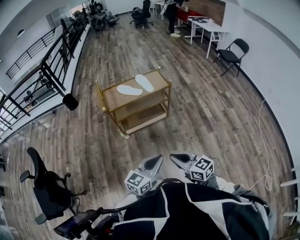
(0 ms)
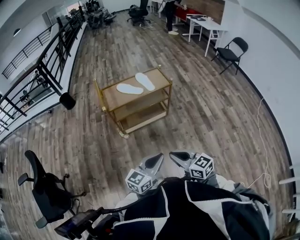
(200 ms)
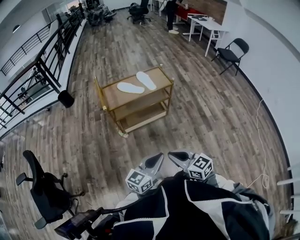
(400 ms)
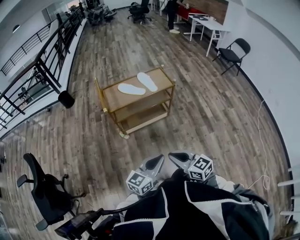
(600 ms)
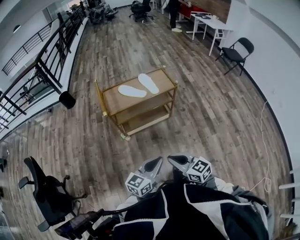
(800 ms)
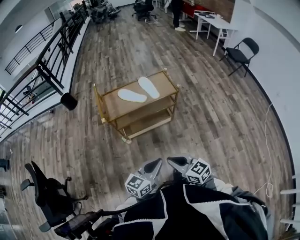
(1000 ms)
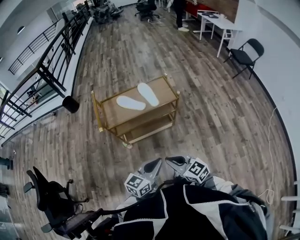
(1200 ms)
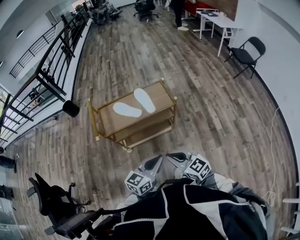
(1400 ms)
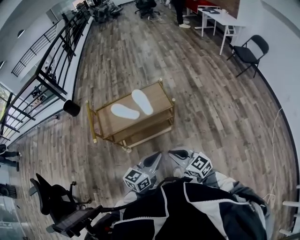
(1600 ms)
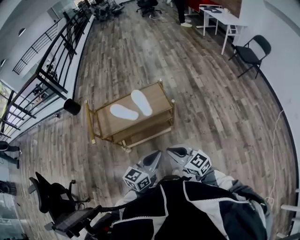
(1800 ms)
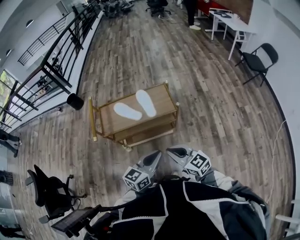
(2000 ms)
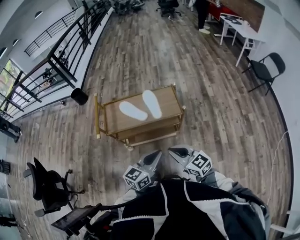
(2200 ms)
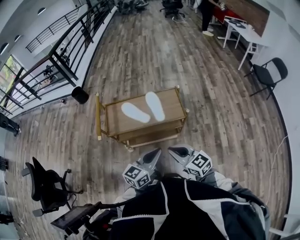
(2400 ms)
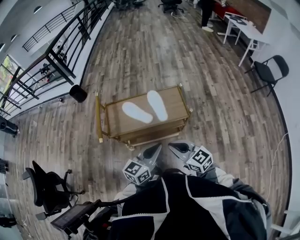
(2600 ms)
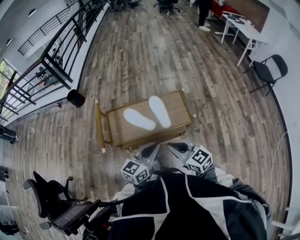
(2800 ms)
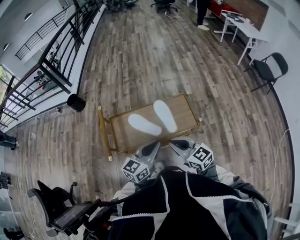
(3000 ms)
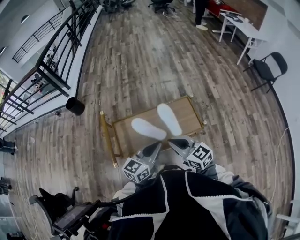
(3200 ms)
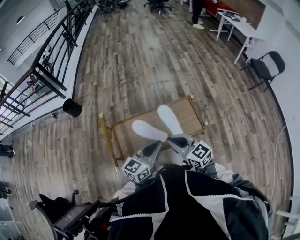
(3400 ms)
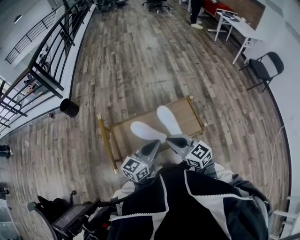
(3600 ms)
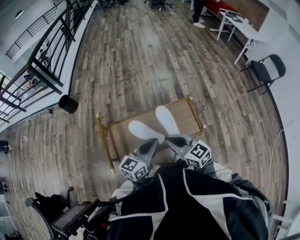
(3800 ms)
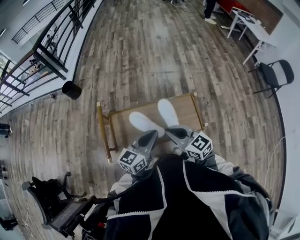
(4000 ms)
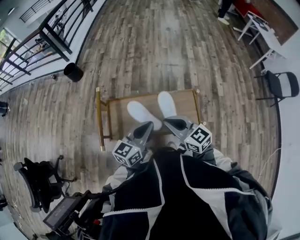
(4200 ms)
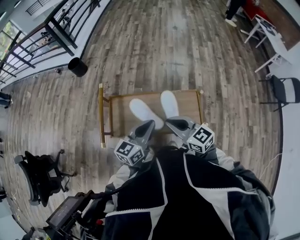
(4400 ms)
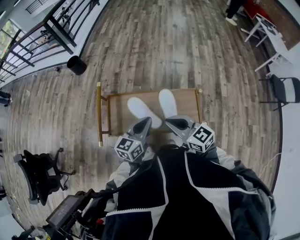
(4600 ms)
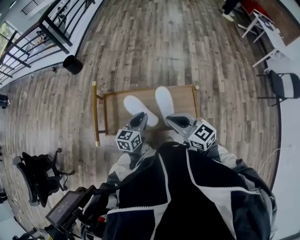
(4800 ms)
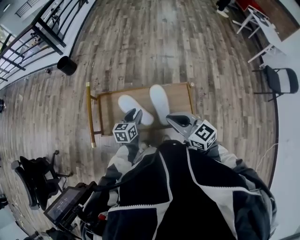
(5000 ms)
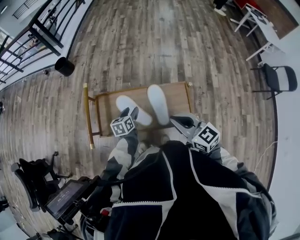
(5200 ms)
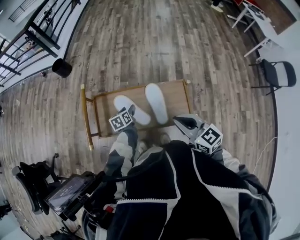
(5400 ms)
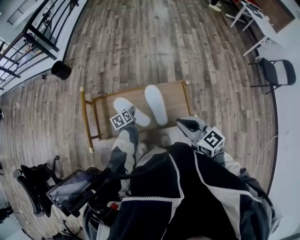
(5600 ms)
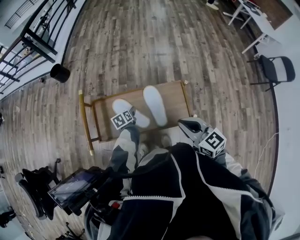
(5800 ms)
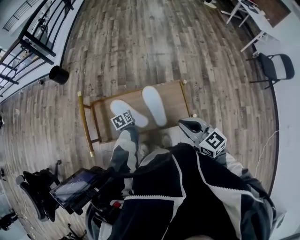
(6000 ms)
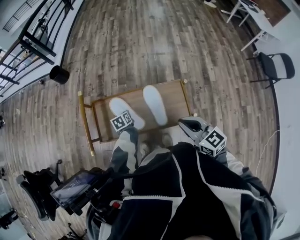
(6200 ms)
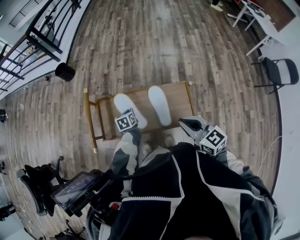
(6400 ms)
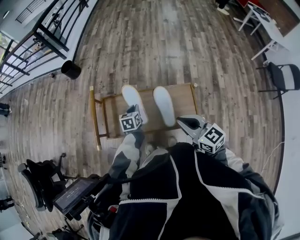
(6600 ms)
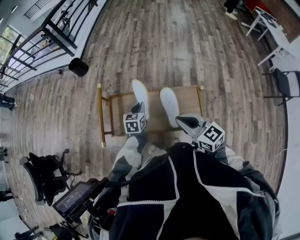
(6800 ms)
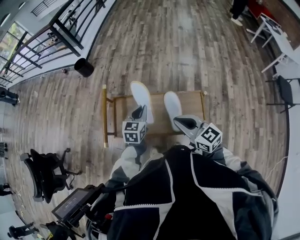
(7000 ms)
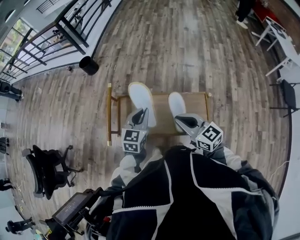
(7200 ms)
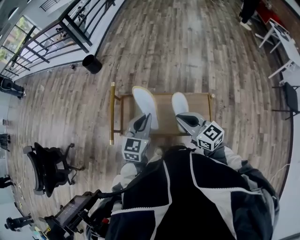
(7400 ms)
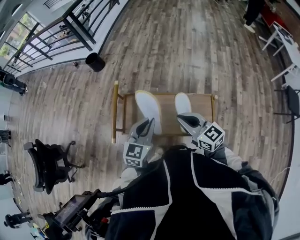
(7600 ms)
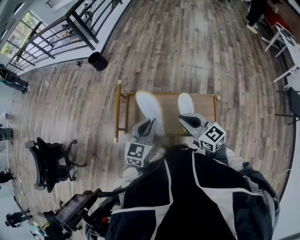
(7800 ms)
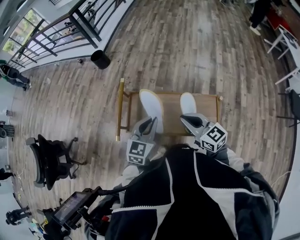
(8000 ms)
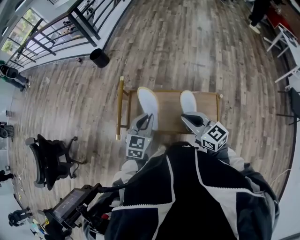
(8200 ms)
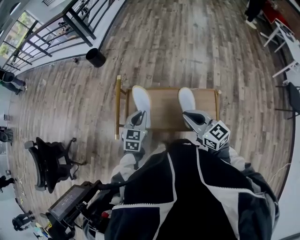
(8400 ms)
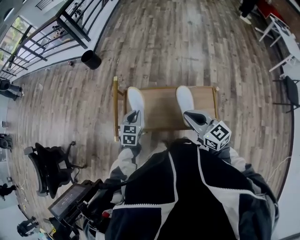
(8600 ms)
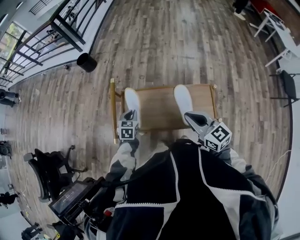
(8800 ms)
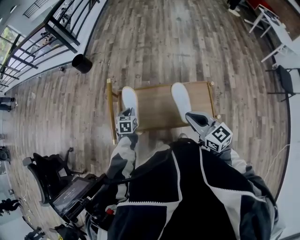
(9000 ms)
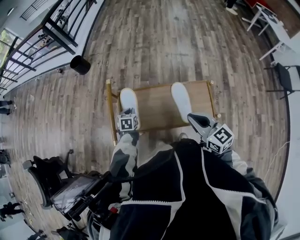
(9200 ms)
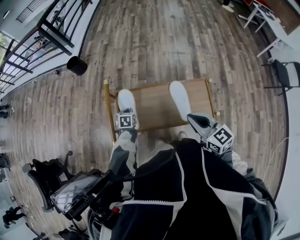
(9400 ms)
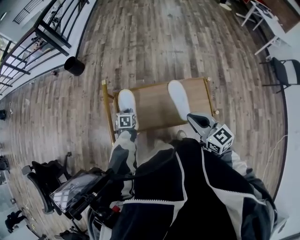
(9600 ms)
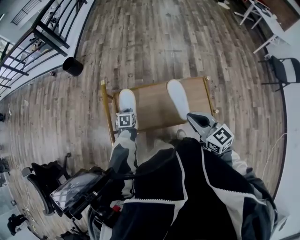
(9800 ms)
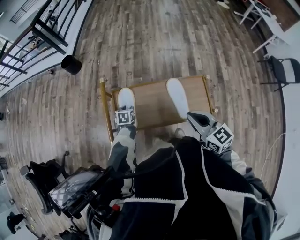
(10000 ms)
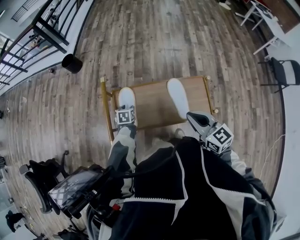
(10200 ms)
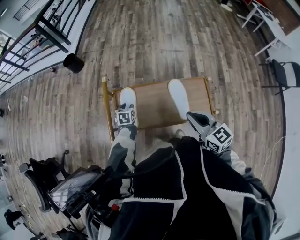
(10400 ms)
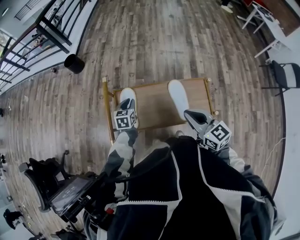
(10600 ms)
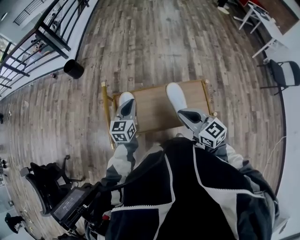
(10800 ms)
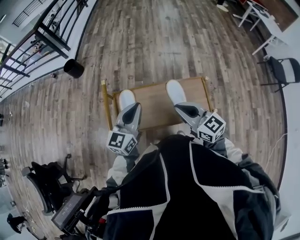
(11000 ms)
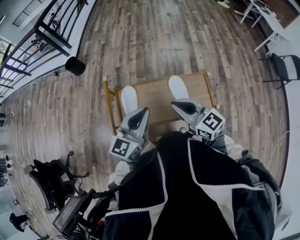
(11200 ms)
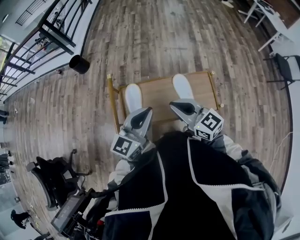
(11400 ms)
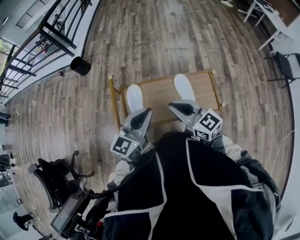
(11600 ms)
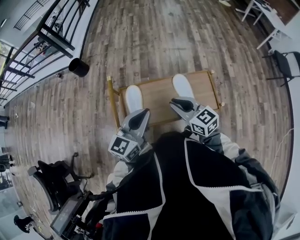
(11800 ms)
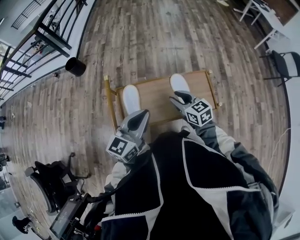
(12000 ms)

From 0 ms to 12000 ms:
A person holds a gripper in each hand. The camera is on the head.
From 0 ms to 1600 ms: Both grippers travel together forward, some 30 cm.
From 1600 ms to 3000 ms: Both grippers move forward and to the left, approximately 25 cm.
From 3000 ms to 4400 ms: The two grippers go roughly 10 cm forward.
From 4400 ms to 6000 ms: The right gripper moves to the right, some 10 cm. The left gripper moves downward and forward, roughly 30 cm, angles its fingers downward, by about 50 degrees, and opens, then closes again.
From 6000 ms to 7600 ms: The right gripper is displaced to the left and forward by roughly 15 cm; the left gripper is displaced upward by about 30 cm, and points its fingers some 40 degrees further upward.
From 7600 ms to 9000 ms: The left gripper heads downward, forward and to the left, covering approximately 30 cm, and tips its fingers downward by about 30 degrees.
From 9000 ms to 10400 ms: The left gripper goes some 5 cm downward, and opens its fingers.
From 10400 ms to 12000 ms: The right gripper travels downward and forward by approximately 10 cm, and opens; the left gripper moves upward and backward, approximately 35 cm, tips its fingers upward by about 50 degrees, and closes.

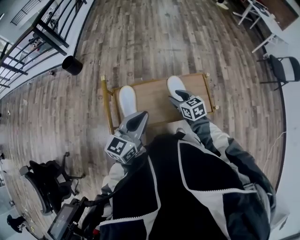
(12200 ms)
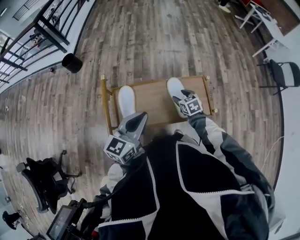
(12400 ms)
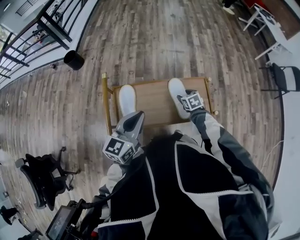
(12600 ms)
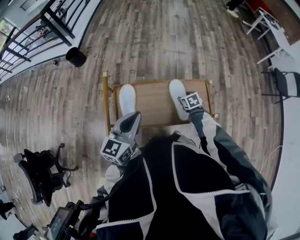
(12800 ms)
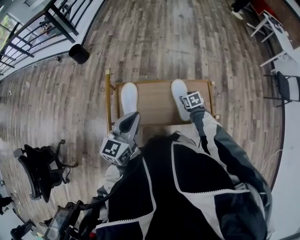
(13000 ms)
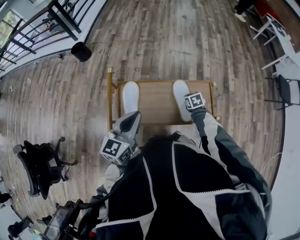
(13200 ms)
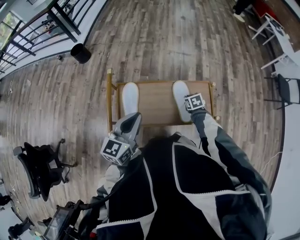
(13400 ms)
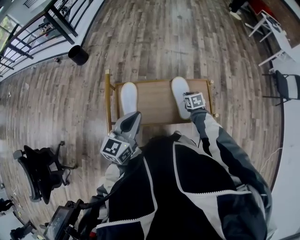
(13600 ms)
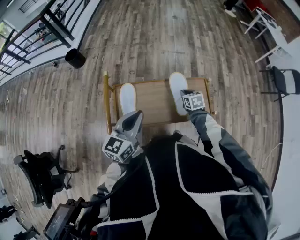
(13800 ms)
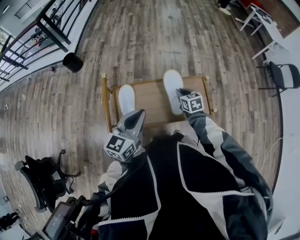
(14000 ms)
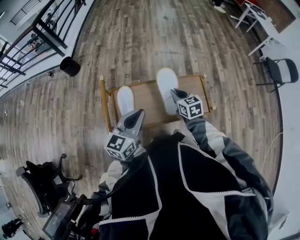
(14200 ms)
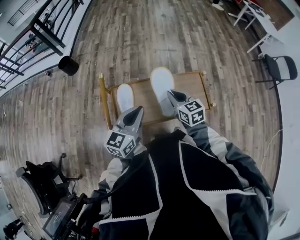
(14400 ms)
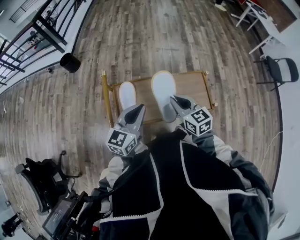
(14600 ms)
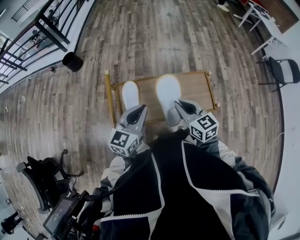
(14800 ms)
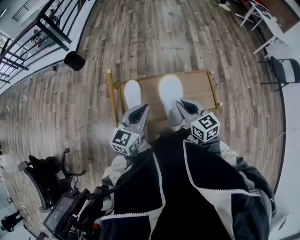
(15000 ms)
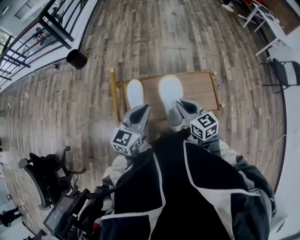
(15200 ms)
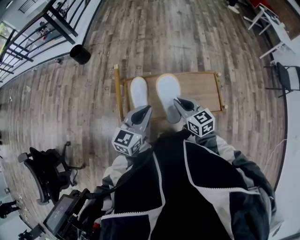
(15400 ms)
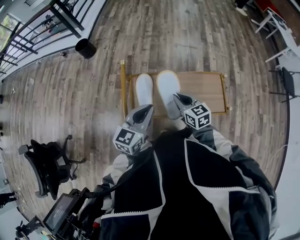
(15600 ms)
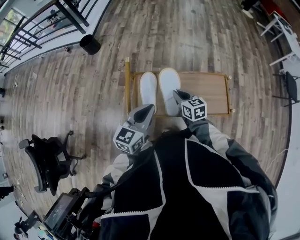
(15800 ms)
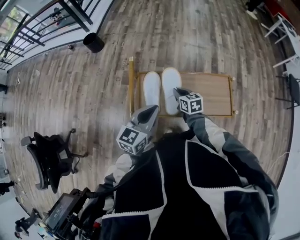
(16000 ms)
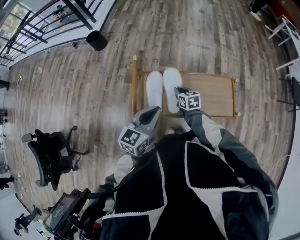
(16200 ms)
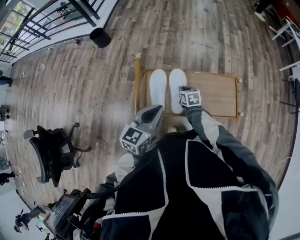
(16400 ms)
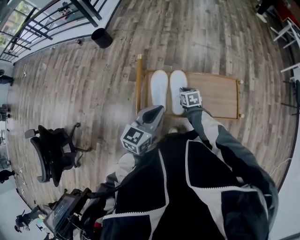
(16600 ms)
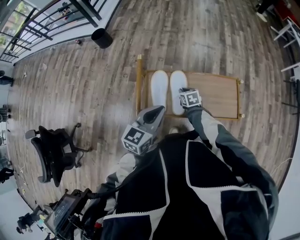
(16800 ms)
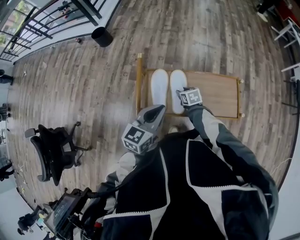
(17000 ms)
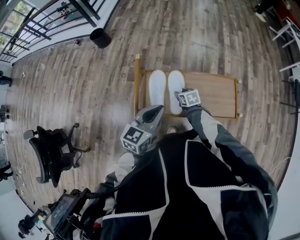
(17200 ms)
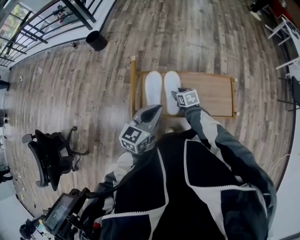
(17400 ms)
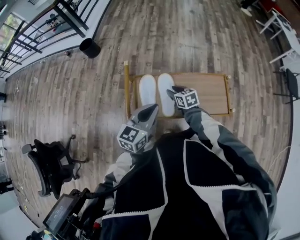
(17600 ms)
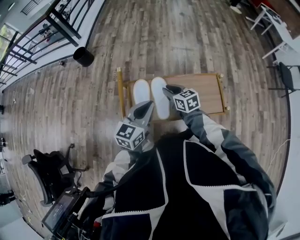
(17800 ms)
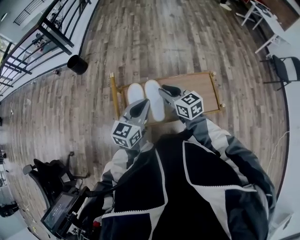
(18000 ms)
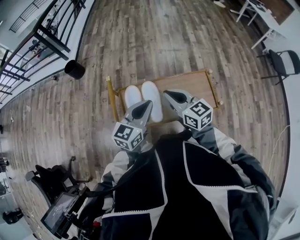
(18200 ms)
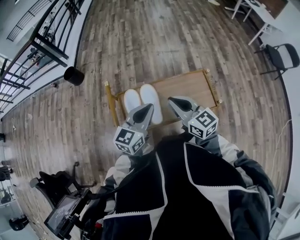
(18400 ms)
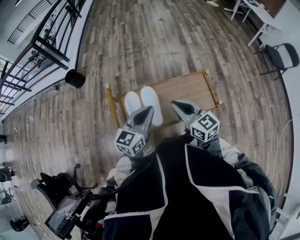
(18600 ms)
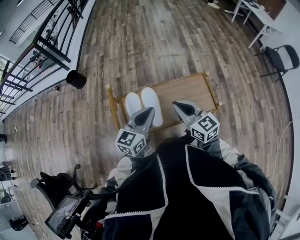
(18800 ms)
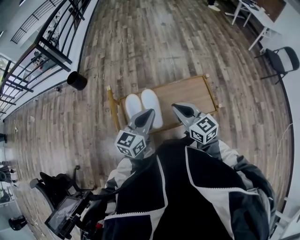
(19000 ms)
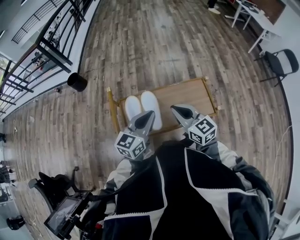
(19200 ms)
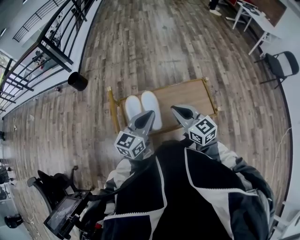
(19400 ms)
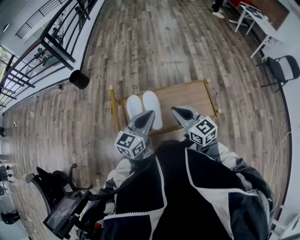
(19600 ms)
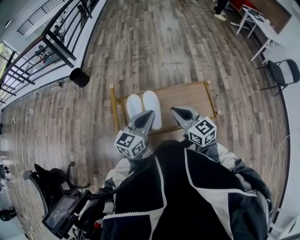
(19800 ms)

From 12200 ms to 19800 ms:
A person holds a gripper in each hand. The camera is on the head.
From 12200 ms to 13800 ms: The right gripper moves downward, to the right and forward, approximately 10 cm, and closes up.
From 13800 ms to 15200 ms: The right gripper is displaced upward, backward and to the left by about 25 cm, and changes its angle by approximately 30 degrees.
From 15200 ms to 16800 ms: The right gripper heads downward and forward, covering about 25 cm, and turns by some 30 degrees.
From 16800 ms to 18200 ms: The left gripper shifts some 5 cm to the right. Meanwhile the right gripper shifts some 30 cm upward, tips its fingers upward by approximately 40 degrees, and opens and closes again.
From 18200 ms to 19800 ms: The right gripper shifts by roughly 5 cm.

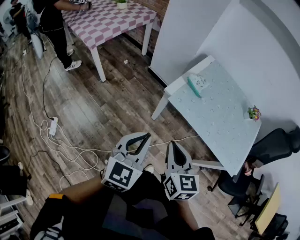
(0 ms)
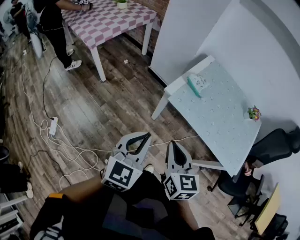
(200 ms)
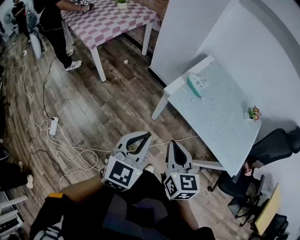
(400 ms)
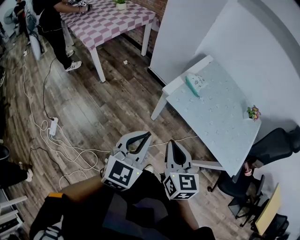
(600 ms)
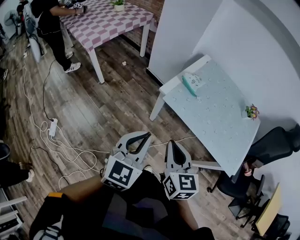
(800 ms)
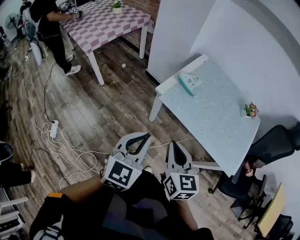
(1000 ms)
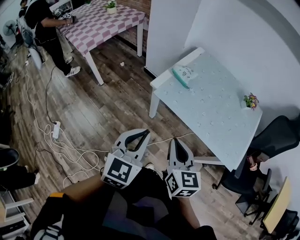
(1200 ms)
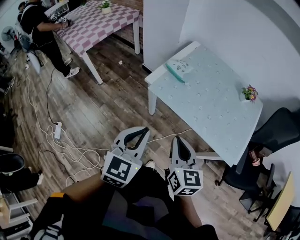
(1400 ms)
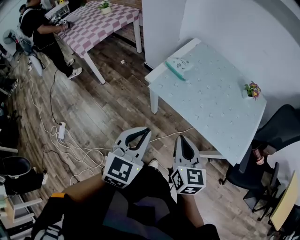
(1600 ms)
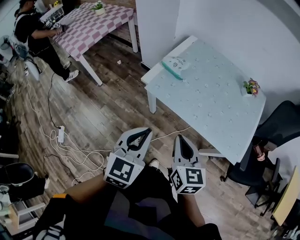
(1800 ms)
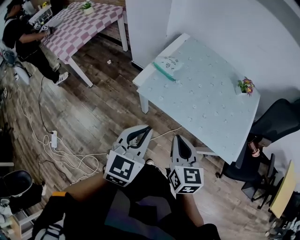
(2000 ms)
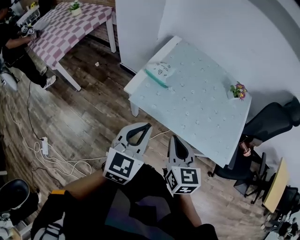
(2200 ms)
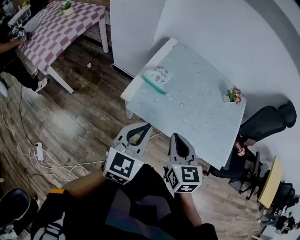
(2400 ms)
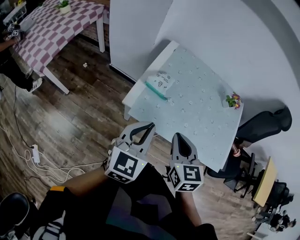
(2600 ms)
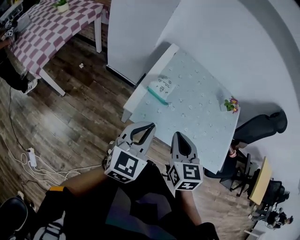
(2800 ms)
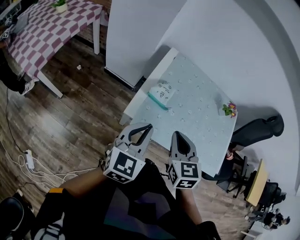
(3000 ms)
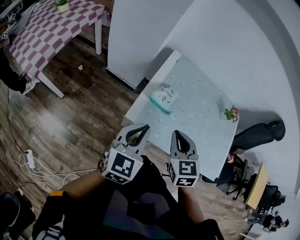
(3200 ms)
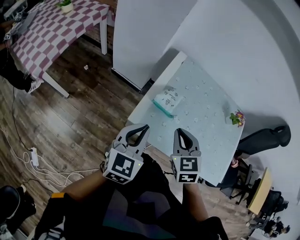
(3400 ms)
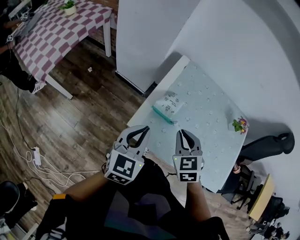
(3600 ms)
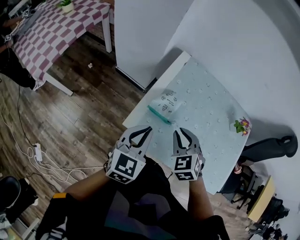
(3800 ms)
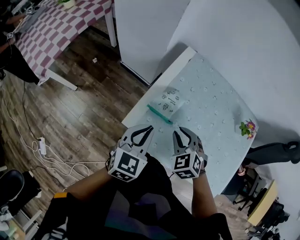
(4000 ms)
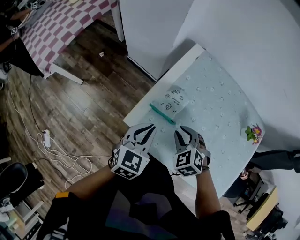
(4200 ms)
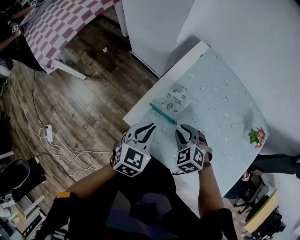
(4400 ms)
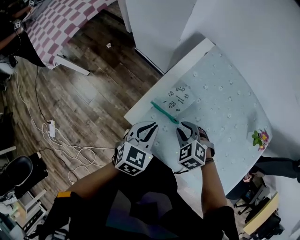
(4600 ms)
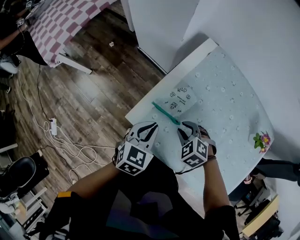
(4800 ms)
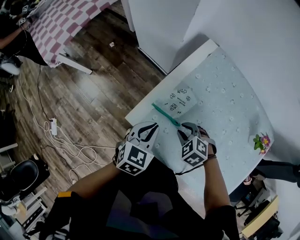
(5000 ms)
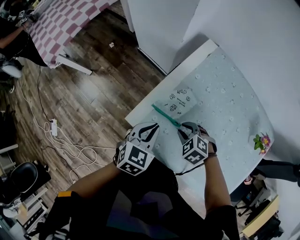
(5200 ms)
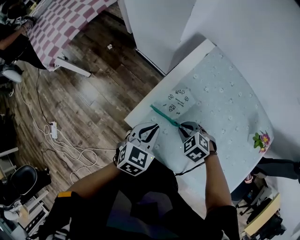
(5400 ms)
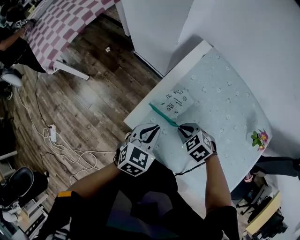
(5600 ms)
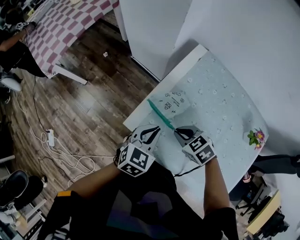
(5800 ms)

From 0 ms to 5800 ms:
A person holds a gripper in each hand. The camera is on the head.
From 0 ms to 1400 ms: The grippers both shift to the right by approximately 15 cm.
From 1400 ms to 2800 ms: The grippers both shift forward by about 20 cm. The right gripper turns by about 20 degrees.
From 2800 ms to 4400 ms: The left gripper shifts roughly 20 cm forward and downward, and rotates approximately 20 degrees. Meanwhile the right gripper shifts some 25 cm downward and forward, points its fingers roughly 30 degrees further downward, and opens up.
From 4400 ms to 5800 ms: The right gripper swivels some 30 degrees.
